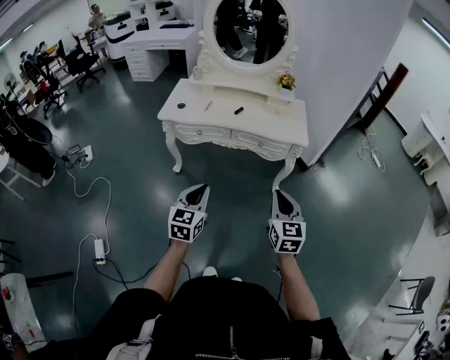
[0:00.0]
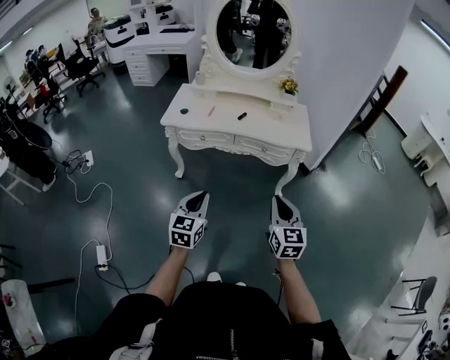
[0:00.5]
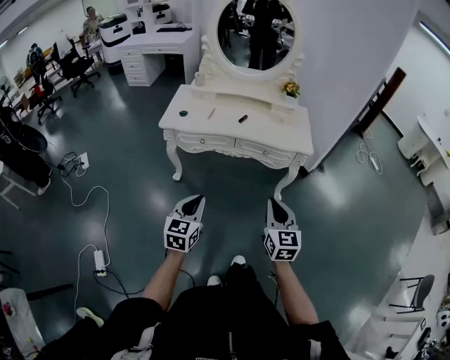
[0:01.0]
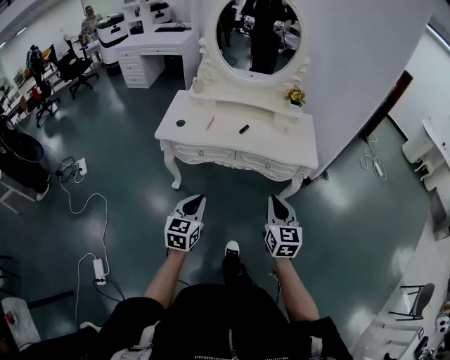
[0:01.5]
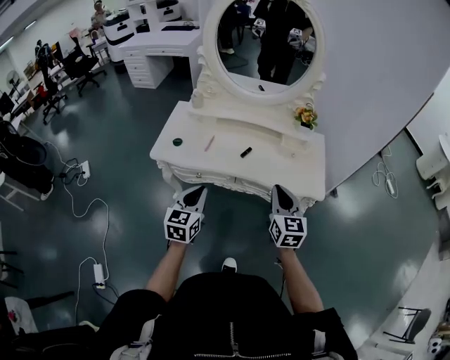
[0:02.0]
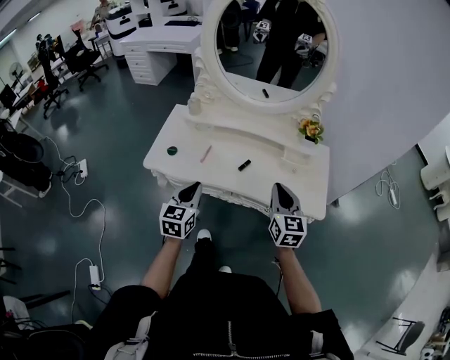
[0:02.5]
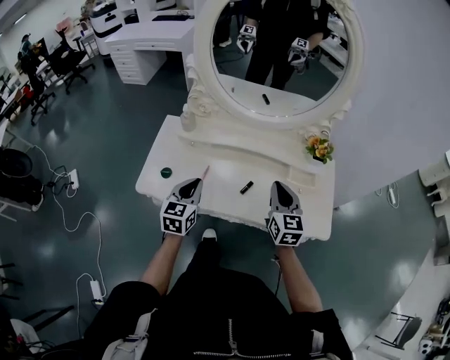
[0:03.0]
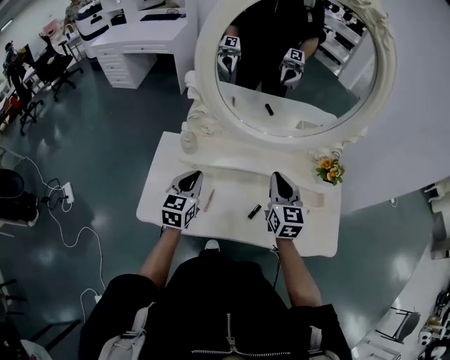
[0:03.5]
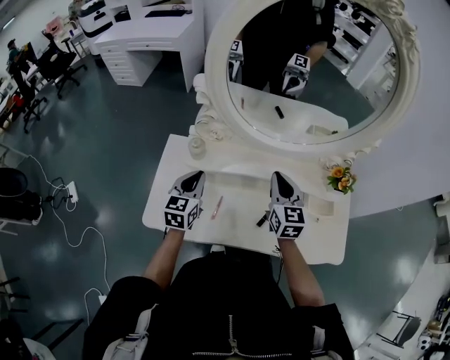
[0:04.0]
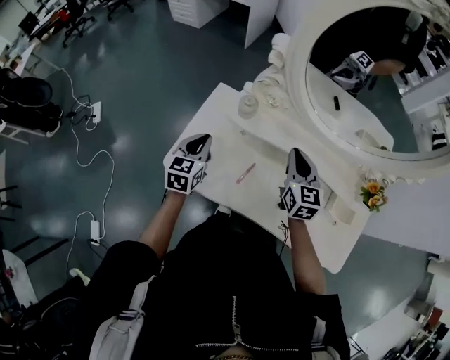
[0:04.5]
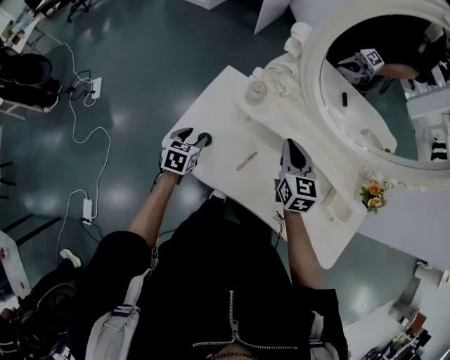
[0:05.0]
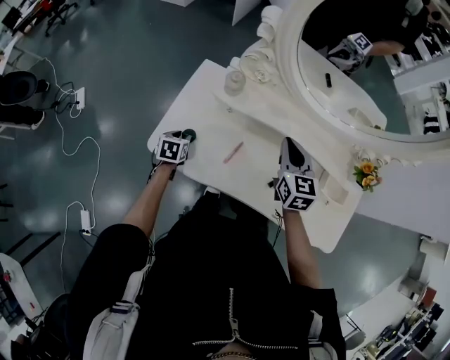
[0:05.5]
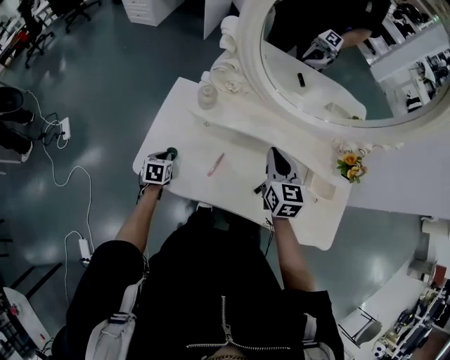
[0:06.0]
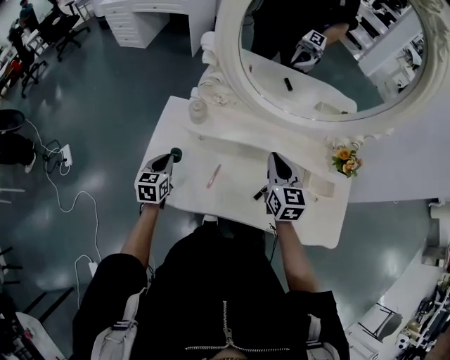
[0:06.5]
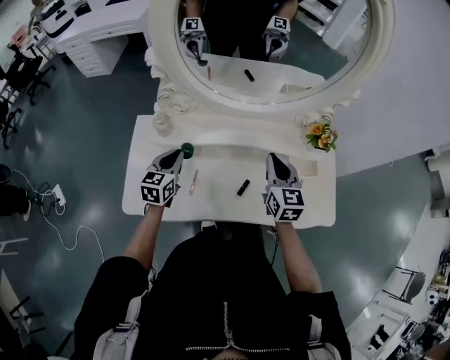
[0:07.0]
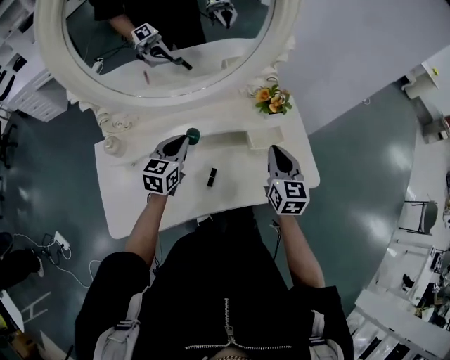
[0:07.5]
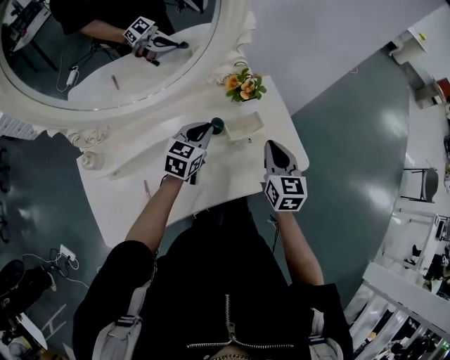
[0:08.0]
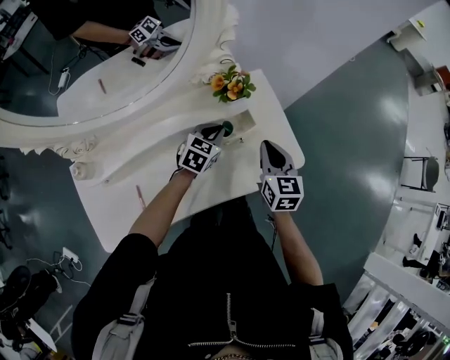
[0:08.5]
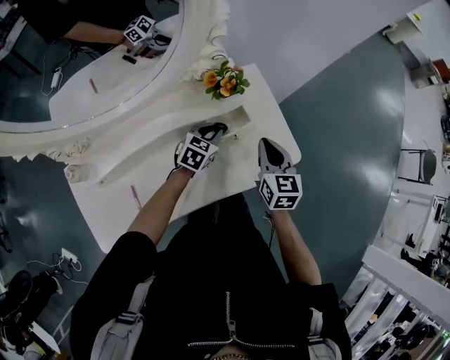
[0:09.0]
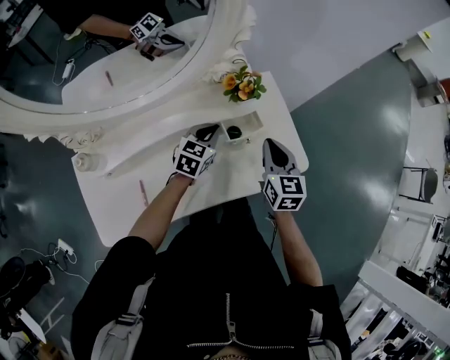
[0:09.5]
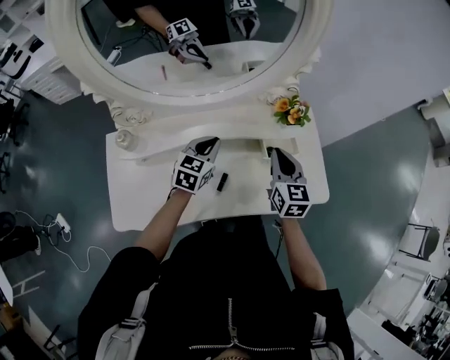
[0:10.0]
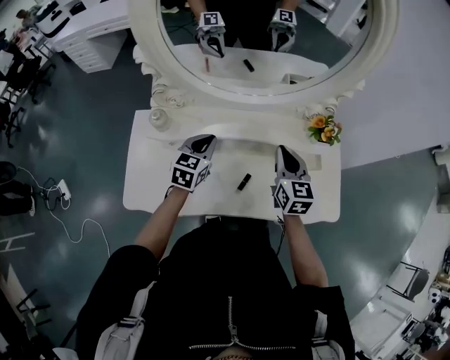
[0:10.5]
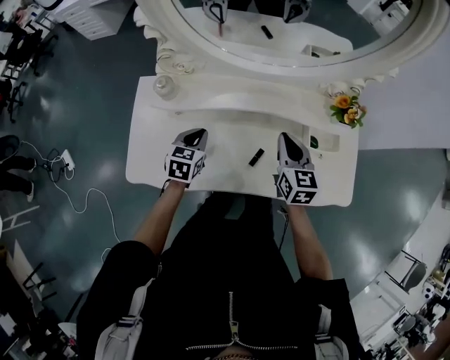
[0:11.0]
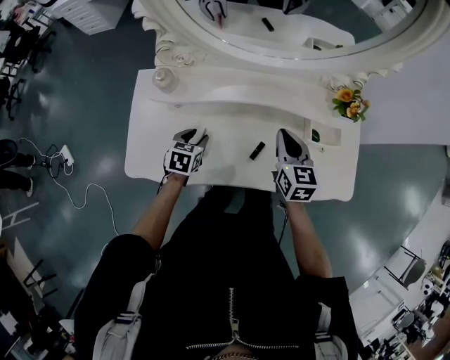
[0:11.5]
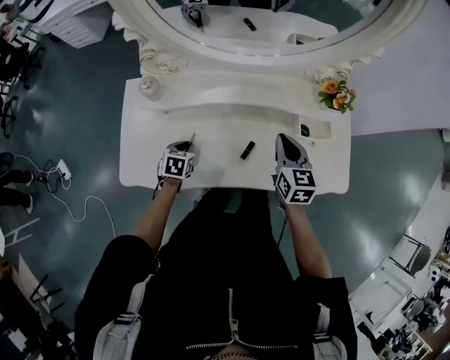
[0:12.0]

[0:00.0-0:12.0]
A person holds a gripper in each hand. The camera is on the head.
0:00.0 to 0:02.0: The grippers both shift forward by roughly 35 cm.
0:02.0 to 0:04.0: The two grippers travel together, forward, some 40 cm.
0:04.0 to 0:06.0: The left gripper moves downward and to the left, approximately 25 cm, tilts its fingers some 30 degrees downward, and opens, then closes again. The right gripper goes to the left and returns, approximately 10 cm each way.
0:06.0 to 0:08.0: The right gripper moves about 35 cm, and changes its angle by approximately 40 degrees. The left gripper shifts by about 60 cm, and swivels roughly 70 degrees.
0:08.0 to 0:10.0: Both grippers move to the left, approximately 10 cm.
0:10.0 to 0:12.0: The left gripper travels to the left, downward and backward by about 30 cm, tilts its fingers about 30 degrees downward, and opens, then closes once more. Meanwhile the right gripper heads to the left and downward, covering some 10 cm.

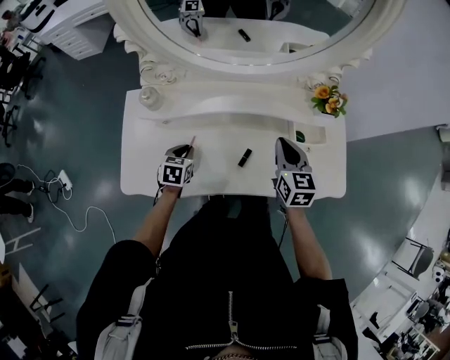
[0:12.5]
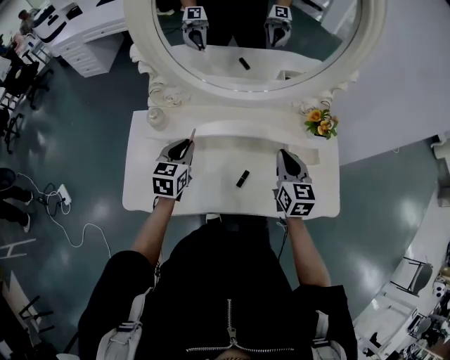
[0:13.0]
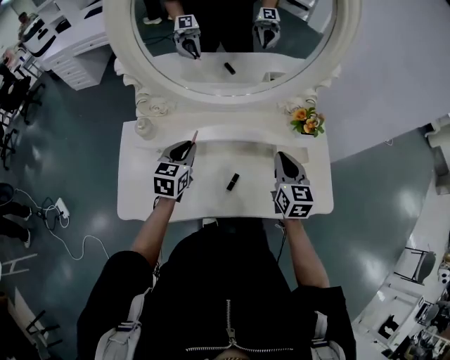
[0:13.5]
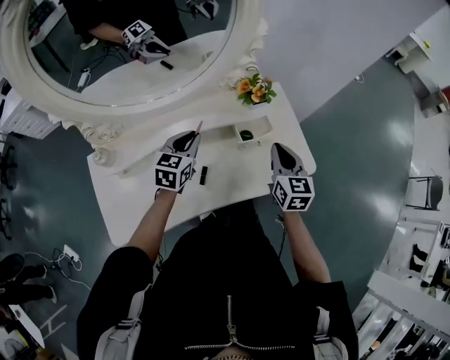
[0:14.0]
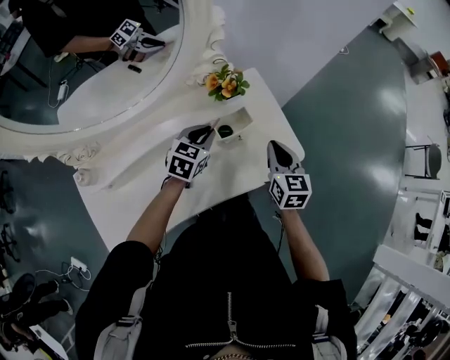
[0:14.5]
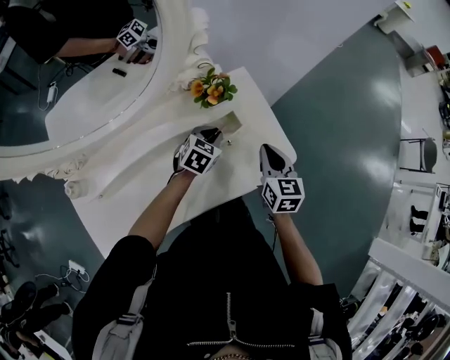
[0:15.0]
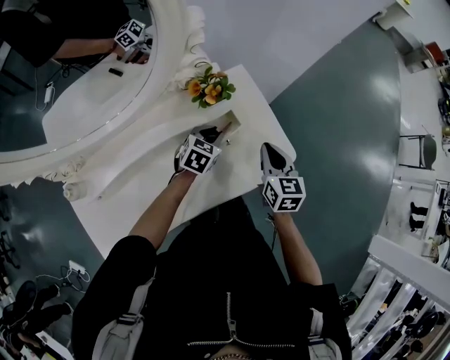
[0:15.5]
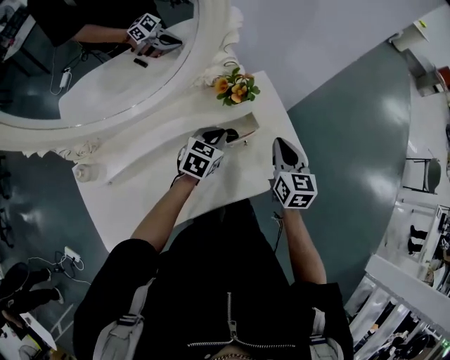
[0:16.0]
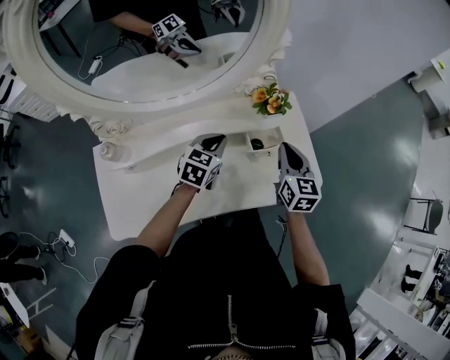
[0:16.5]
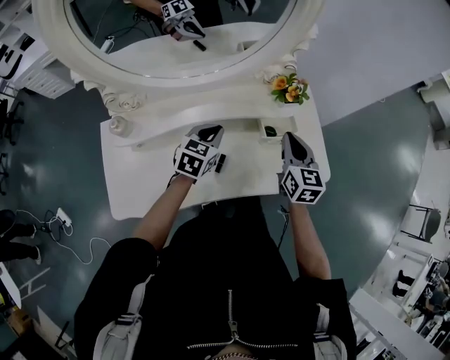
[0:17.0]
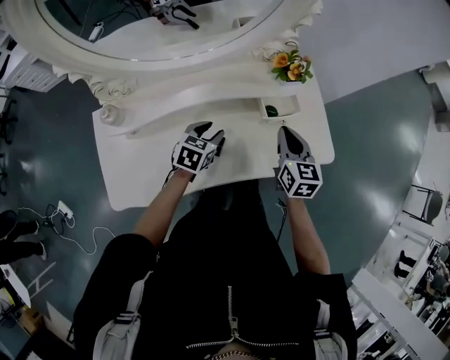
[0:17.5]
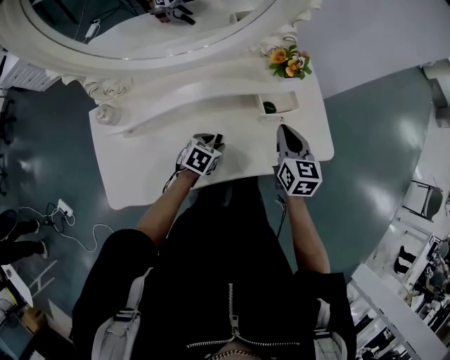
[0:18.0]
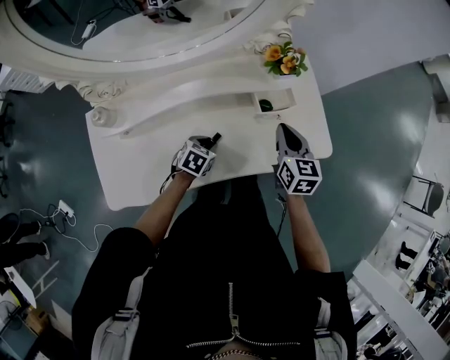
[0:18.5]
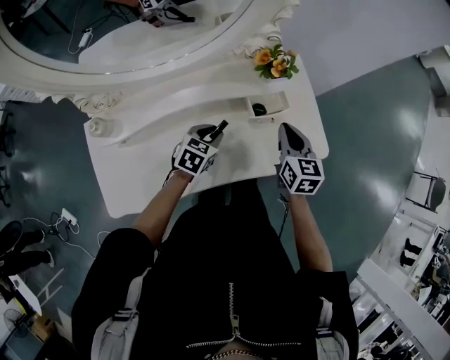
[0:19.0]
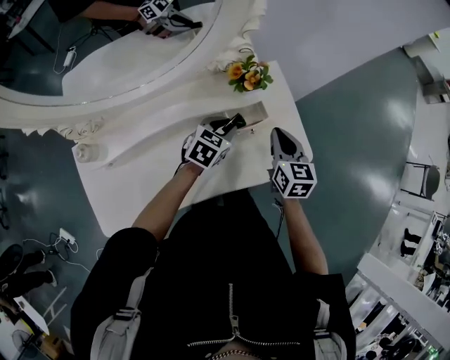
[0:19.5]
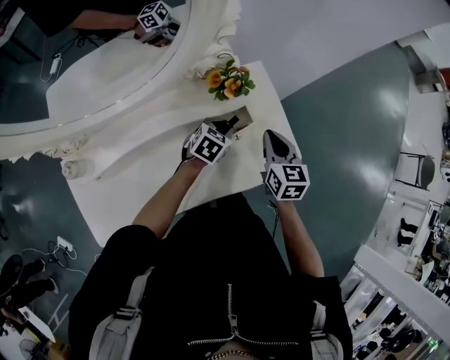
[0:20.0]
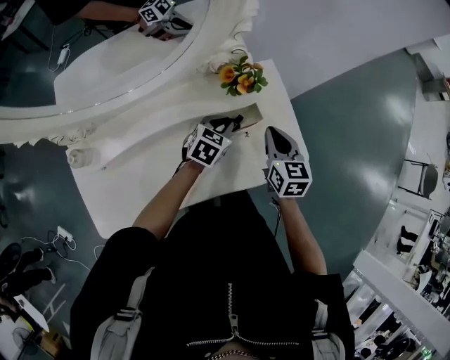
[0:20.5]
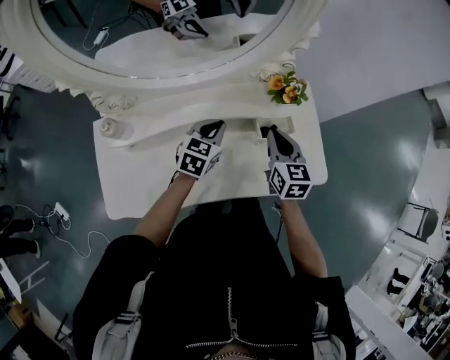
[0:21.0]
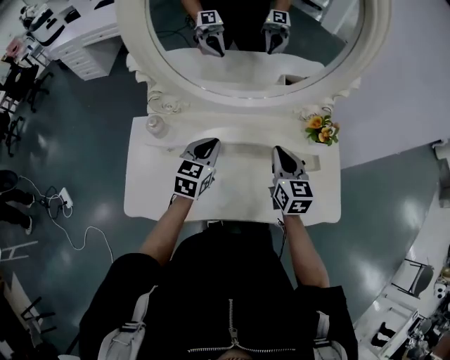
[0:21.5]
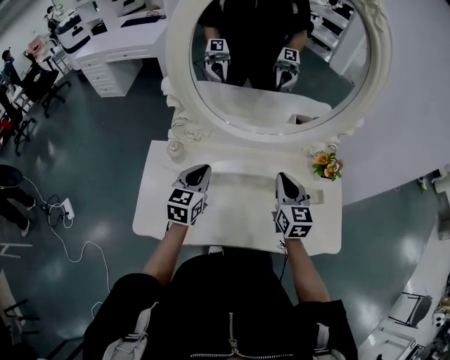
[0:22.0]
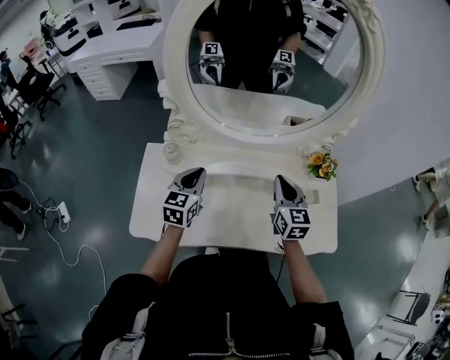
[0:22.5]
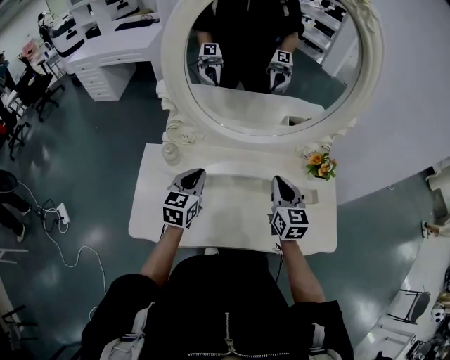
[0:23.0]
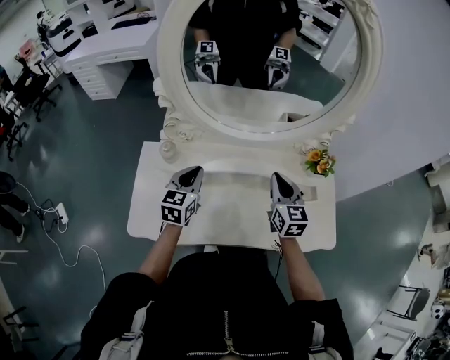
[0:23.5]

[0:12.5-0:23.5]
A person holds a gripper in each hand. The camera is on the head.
0:12.5 to 0:14.5: The right gripper changes place by about 25 cm, and turns by roughly 30 degrees; the left gripper changes place by some 40 cm, and changes its angle by about 50 degrees.
0:16.0 to 0:18.0: The right gripper goes about 10 cm to the left and backward. The left gripper shifts some 20 cm backward, to the left and downward, turns by about 20 degrees, and opens its fingers.
0:18.0 to 0:20.0: The left gripper is displaced forward and to the right by approximately 25 cm. The right gripper shifts approximately 10 cm to the right and forward.
0:20.0 to 0:21.5: The left gripper shifts by approximately 35 cm, and rotates about 50 degrees. Meanwhile the right gripper changes place by approximately 25 cm, and changes its angle by roughly 30 degrees.
0:21.5 to 0:23.5: The left gripper is displaced to the left by roughly 10 cm.

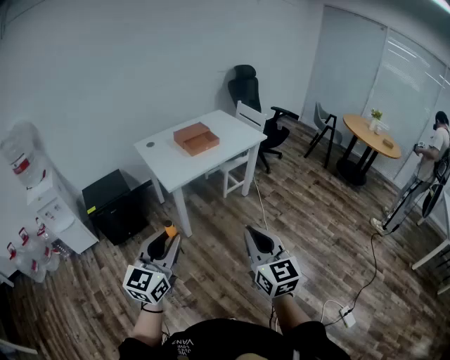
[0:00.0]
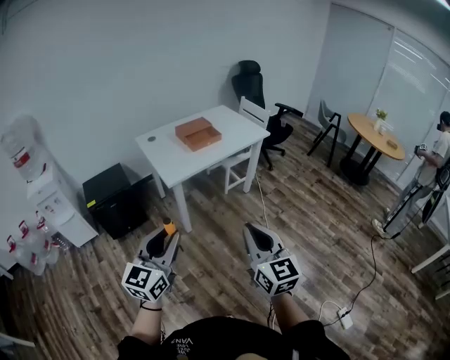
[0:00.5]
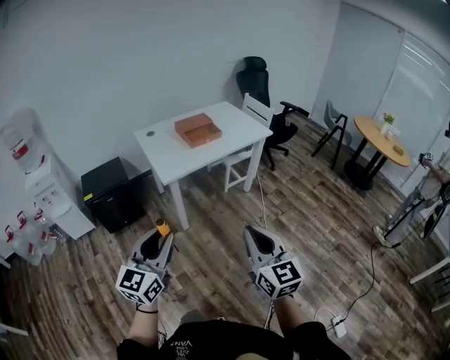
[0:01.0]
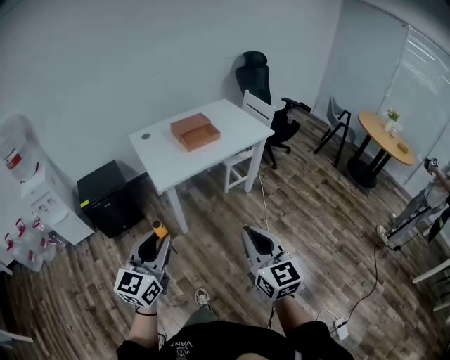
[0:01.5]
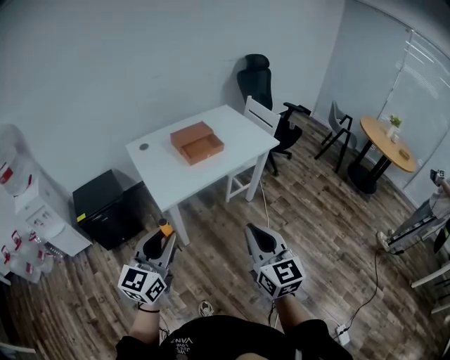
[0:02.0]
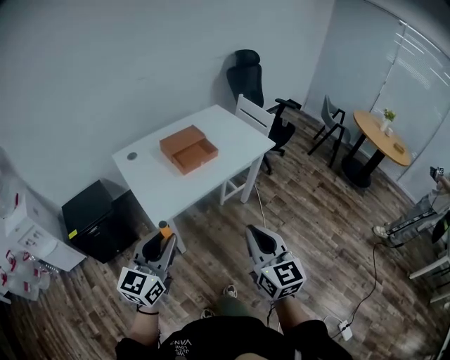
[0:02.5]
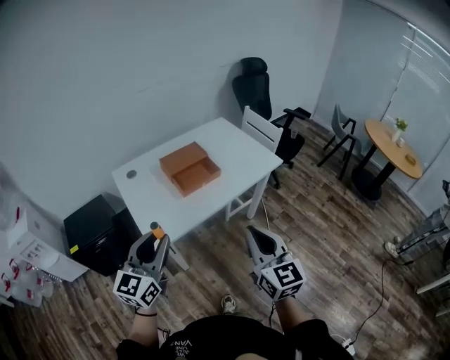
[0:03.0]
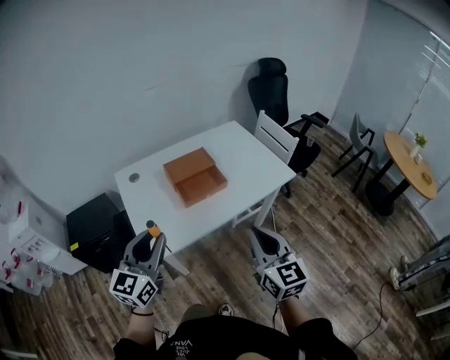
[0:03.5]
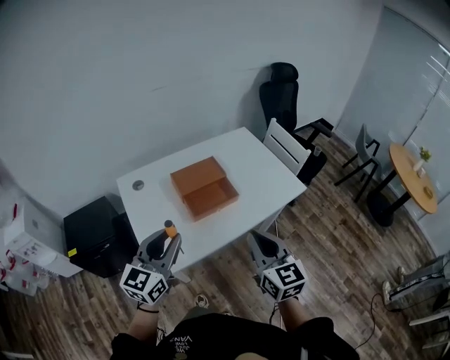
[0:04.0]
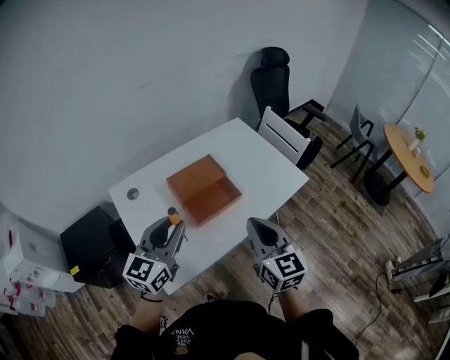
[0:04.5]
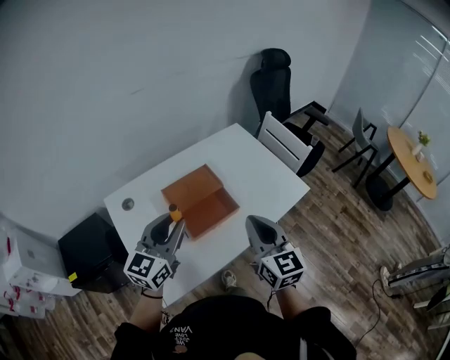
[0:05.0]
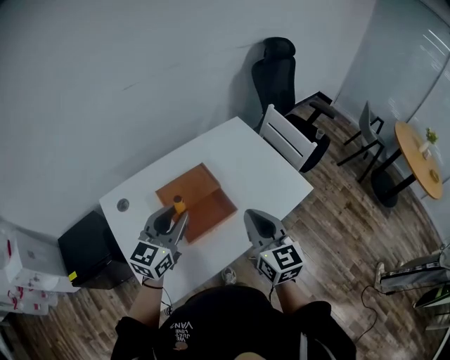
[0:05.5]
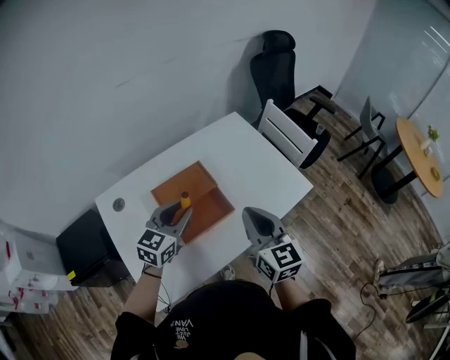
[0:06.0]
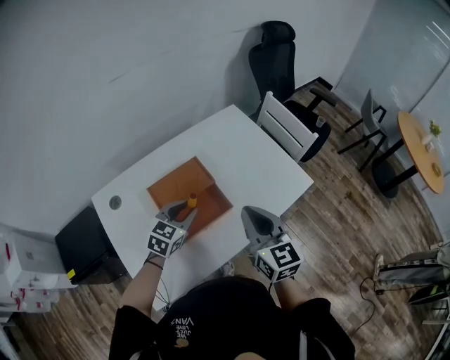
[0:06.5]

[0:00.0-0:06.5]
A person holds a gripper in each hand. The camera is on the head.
0:00.0 to 0:02.0: The grippers both shift forward by some 25 cm.
0:02.0 to 0:04.5: Both grippers are carried forward, about 50 cm.
0:04.5 to 0:06.5: The right gripper heads forward, covering roughly 15 cm. Meanwhile the left gripper heads forward, downward and to the right, covering approximately 25 cm, and changes its angle by about 30 degrees.
